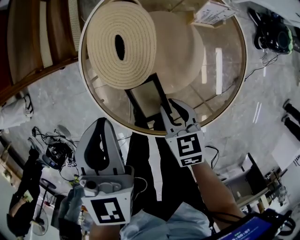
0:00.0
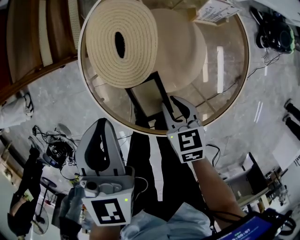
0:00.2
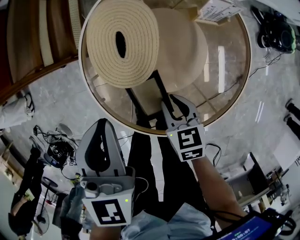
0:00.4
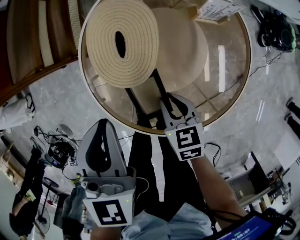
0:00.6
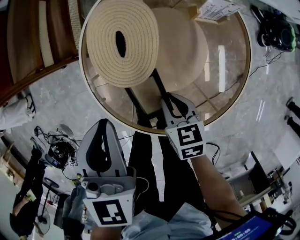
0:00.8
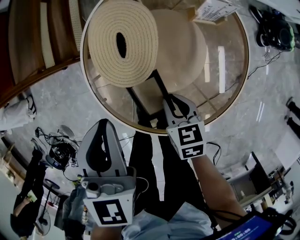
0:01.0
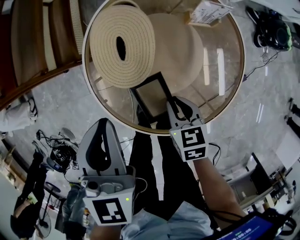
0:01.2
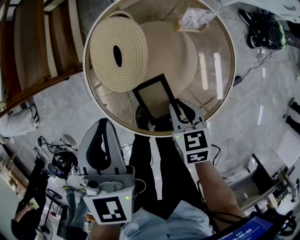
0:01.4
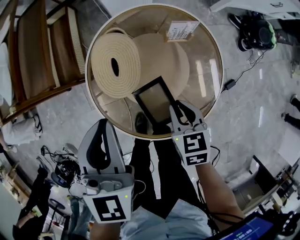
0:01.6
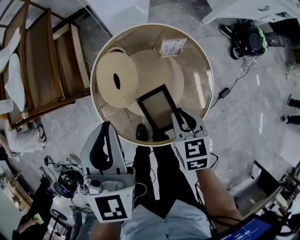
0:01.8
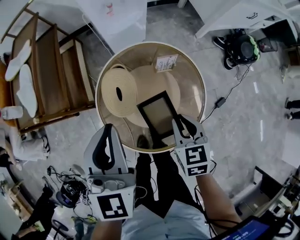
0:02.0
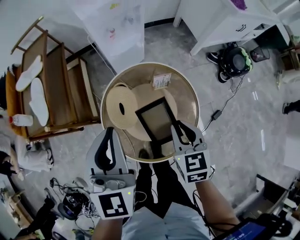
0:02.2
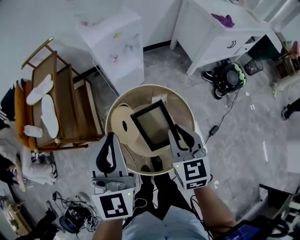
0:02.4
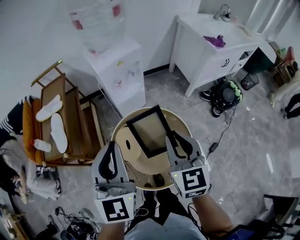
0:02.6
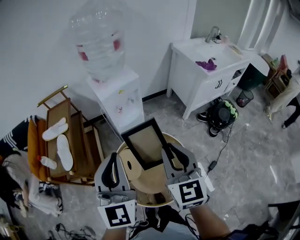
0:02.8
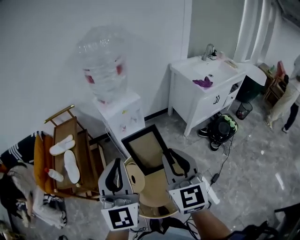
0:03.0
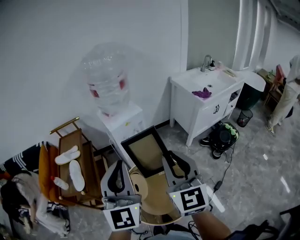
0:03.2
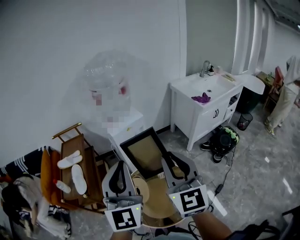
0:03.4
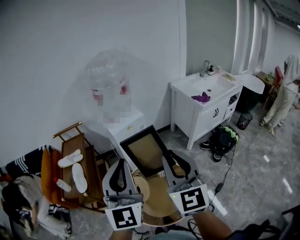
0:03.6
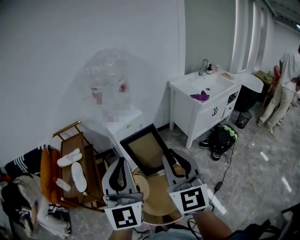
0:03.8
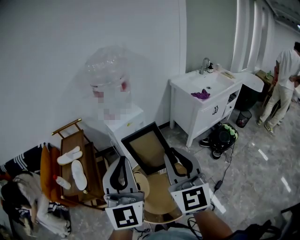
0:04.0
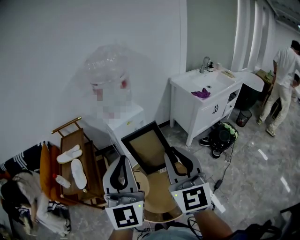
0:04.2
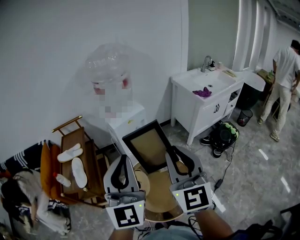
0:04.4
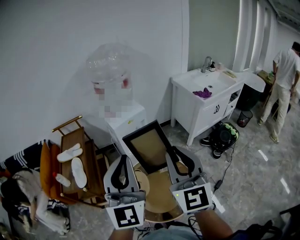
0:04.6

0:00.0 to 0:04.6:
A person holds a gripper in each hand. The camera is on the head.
0:00.0 to 0:01.6: The left gripper goes approximately 10 cm upward. The right gripper heads upward and to the right, covering some 10 cm.
0:01.6 to 0:03.0: Both grippers travel together upward, roughly 50 cm. The left gripper points its fingers some 30 degrees further upward. Meanwhile the right gripper points its fingers approximately 50 degrees further upward.
0:03.0 to 0:04.6: Both grippers move upward, roughly 5 cm.

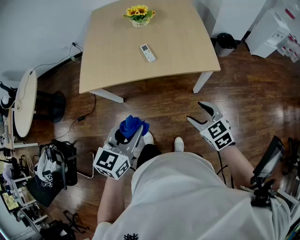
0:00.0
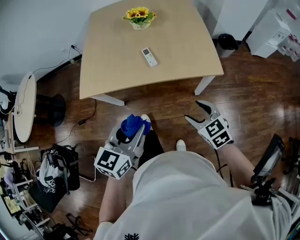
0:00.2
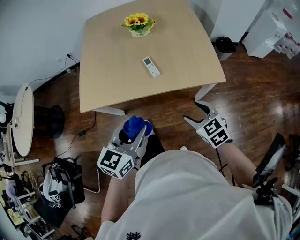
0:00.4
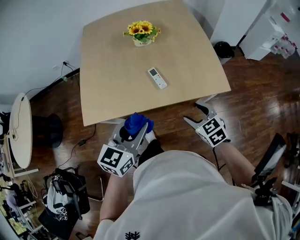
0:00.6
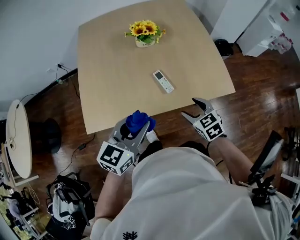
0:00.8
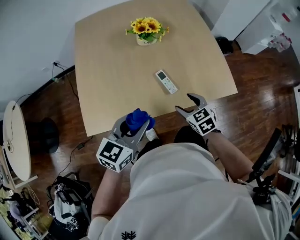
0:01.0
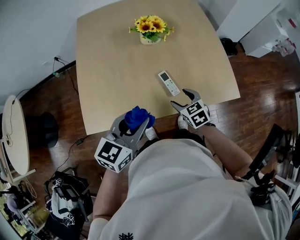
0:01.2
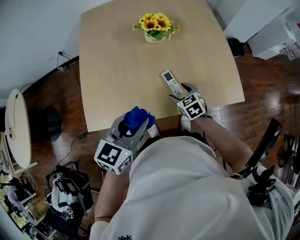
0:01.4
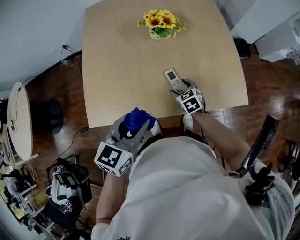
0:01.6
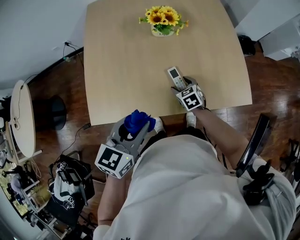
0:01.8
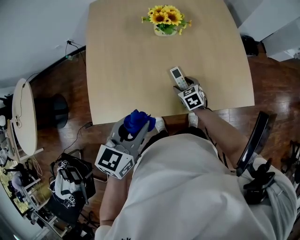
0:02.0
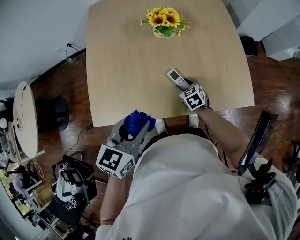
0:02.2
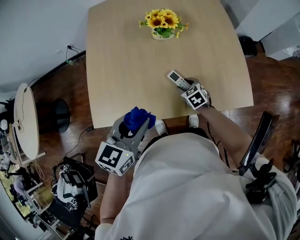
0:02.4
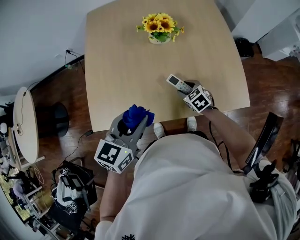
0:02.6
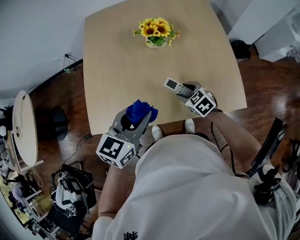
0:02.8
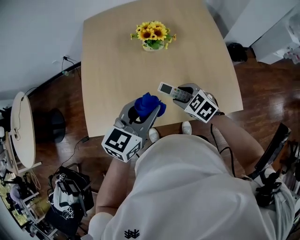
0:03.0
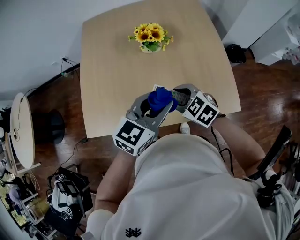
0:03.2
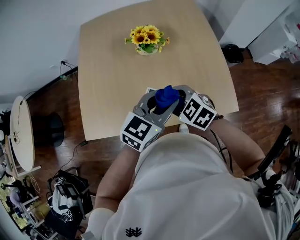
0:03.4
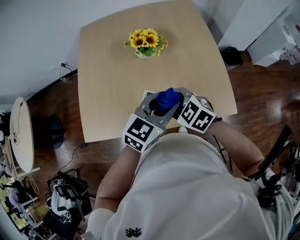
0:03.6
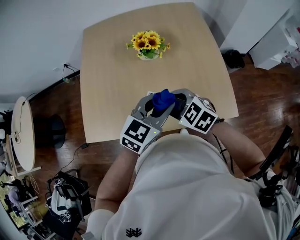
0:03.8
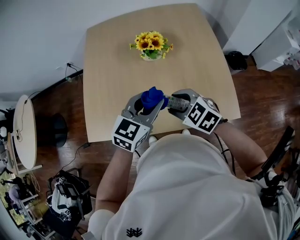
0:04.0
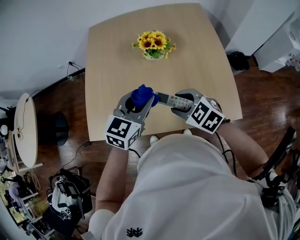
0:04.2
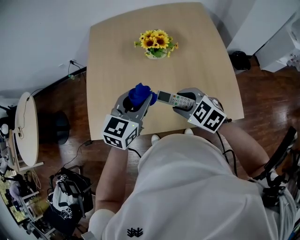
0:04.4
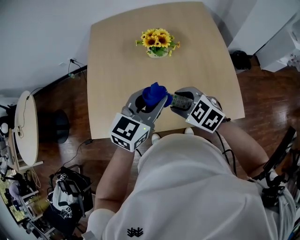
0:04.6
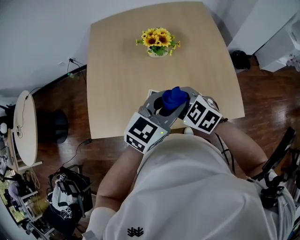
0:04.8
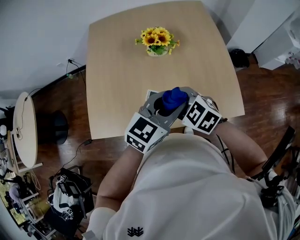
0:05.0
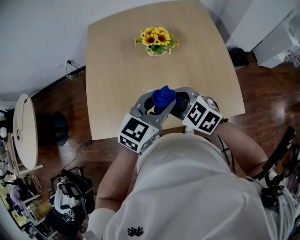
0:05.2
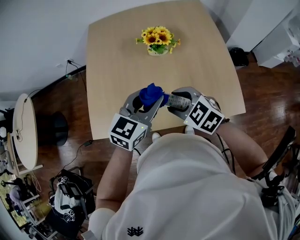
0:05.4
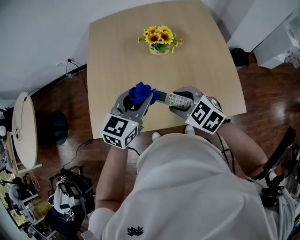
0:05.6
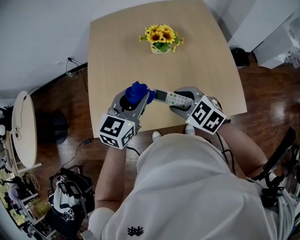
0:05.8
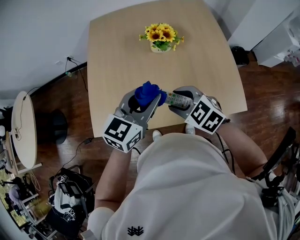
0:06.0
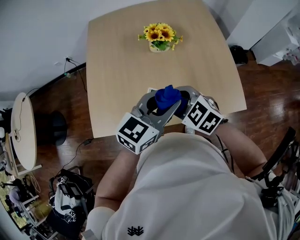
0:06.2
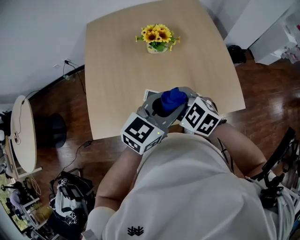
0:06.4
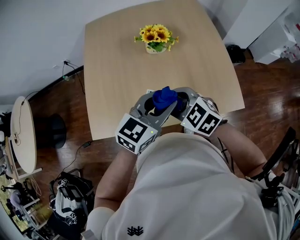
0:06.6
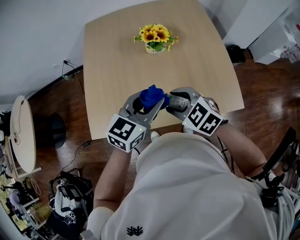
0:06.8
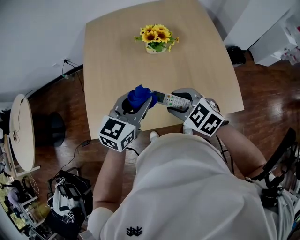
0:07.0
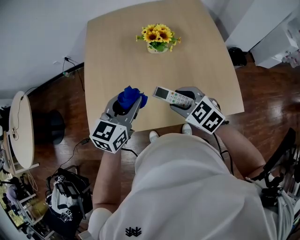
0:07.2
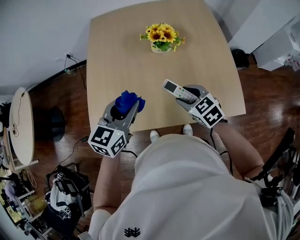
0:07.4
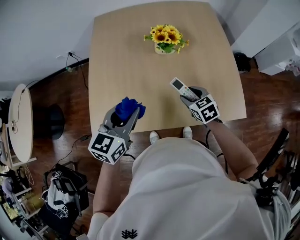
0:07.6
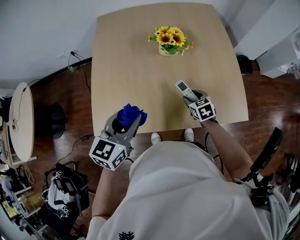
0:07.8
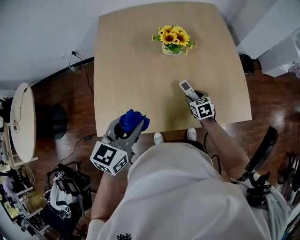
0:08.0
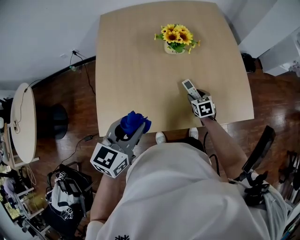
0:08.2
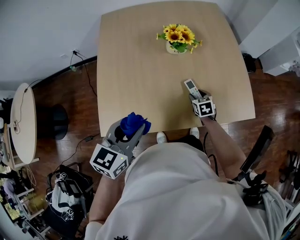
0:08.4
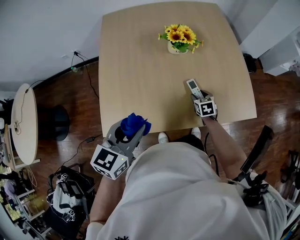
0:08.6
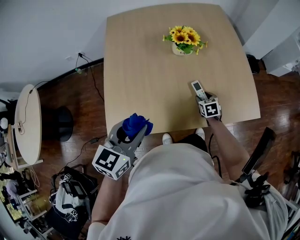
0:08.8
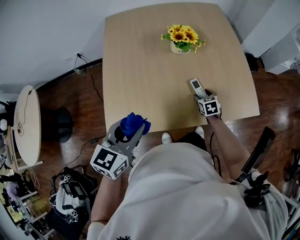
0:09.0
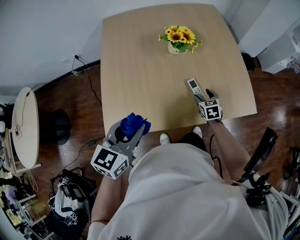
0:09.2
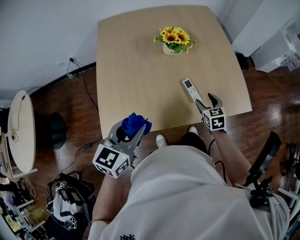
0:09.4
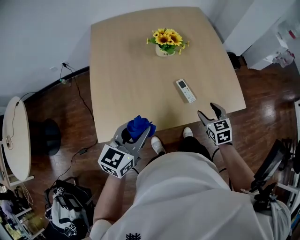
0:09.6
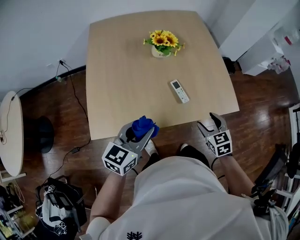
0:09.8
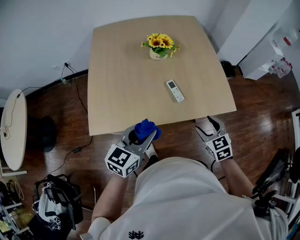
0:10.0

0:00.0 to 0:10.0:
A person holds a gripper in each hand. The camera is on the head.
0:00.0 to 0:01.4: The right gripper is displaced forward, to the left and downward by roughly 40 cm; the left gripper goes approximately 30 cm forward and to the left.
0:01.4 to 0:02.8: The right gripper reaches roughly 5 cm downward, then returns. The left gripper changes place by roughly 5 cm.
0:02.8 to 0:04.2: The left gripper goes some 5 cm forward, and moves about 15 cm to the right and comes back; the right gripper is displaced upward by roughly 15 cm.
0:04.2 to 0:05.8: The two grippers go roughly 5 cm to the left.
0:05.8 to 0:07.2: The left gripper reaches some 10 cm to the right, then returns.
0:07.2 to 0:08.6: The left gripper goes roughly 10 cm to the left and backward. The right gripper moves downward, approximately 25 cm, and turns by about 40 degrees.
0:08.6 to 0:10.0: The left gripper heads to the right and backward, covering about 15 cm. Meanwhile the right gripper moves backward, upward and to the right, about 30 cm, and swivels roughly 20 degrees.

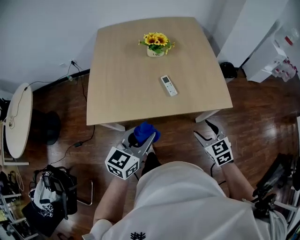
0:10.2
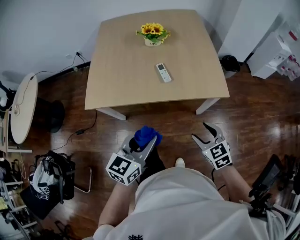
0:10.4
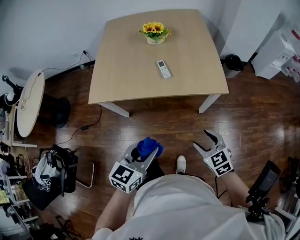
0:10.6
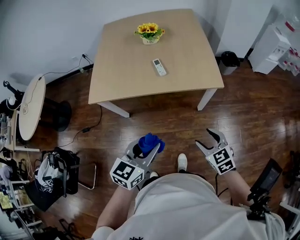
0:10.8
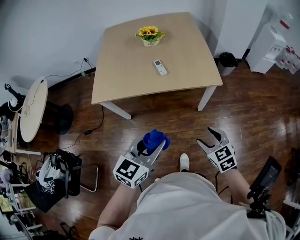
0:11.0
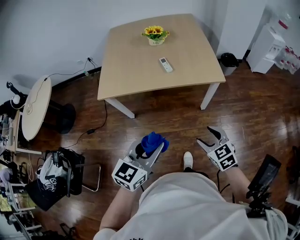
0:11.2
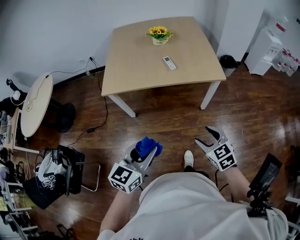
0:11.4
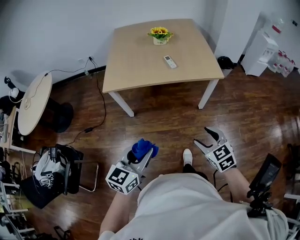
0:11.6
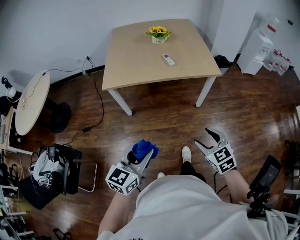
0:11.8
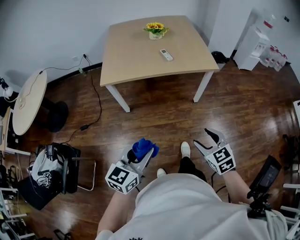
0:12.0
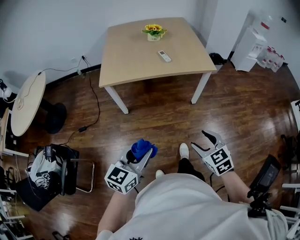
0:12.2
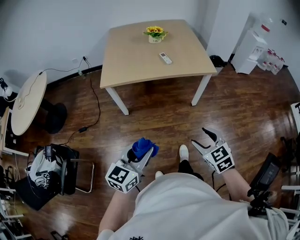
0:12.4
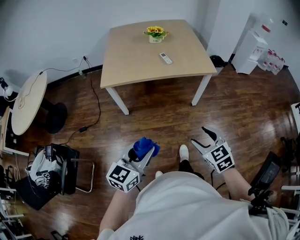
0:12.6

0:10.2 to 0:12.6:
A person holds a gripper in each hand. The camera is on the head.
0:10.2 to 0:11.4: Both grippers travel together backward, some 30 cm.
0:11.4 to 0:12.6: The grippers both shift backward by roughly 10 cm.

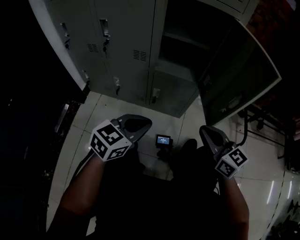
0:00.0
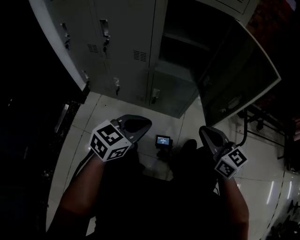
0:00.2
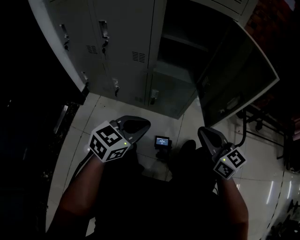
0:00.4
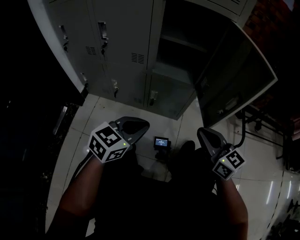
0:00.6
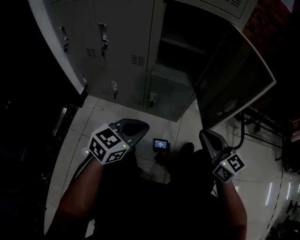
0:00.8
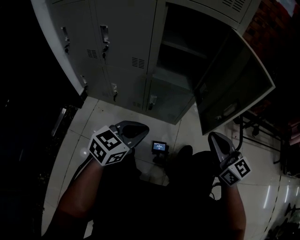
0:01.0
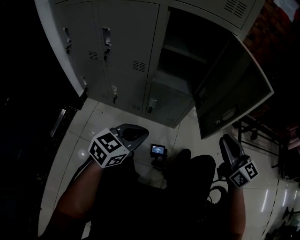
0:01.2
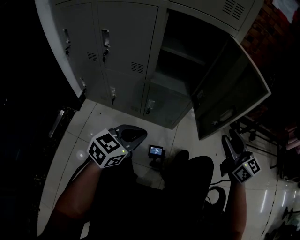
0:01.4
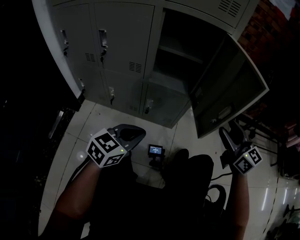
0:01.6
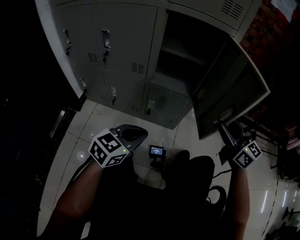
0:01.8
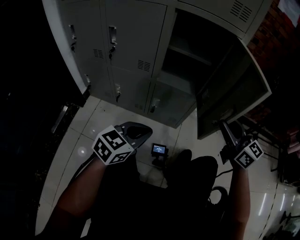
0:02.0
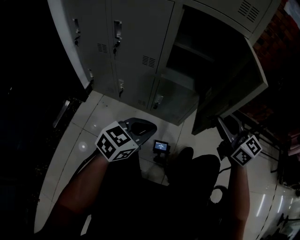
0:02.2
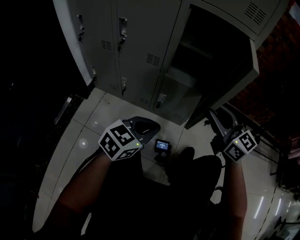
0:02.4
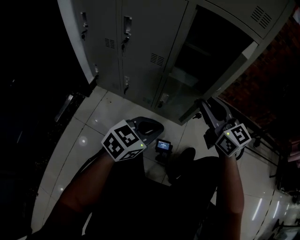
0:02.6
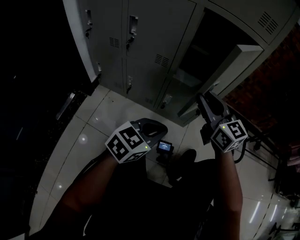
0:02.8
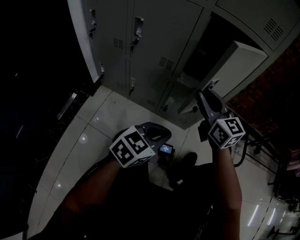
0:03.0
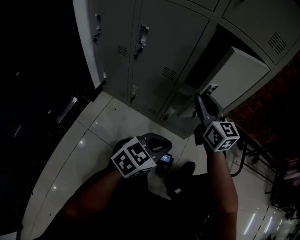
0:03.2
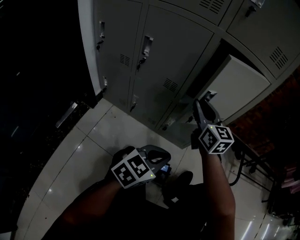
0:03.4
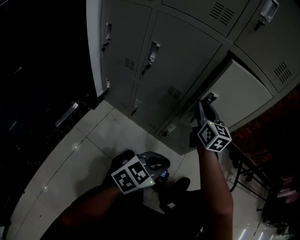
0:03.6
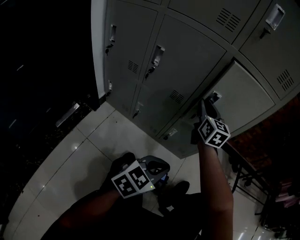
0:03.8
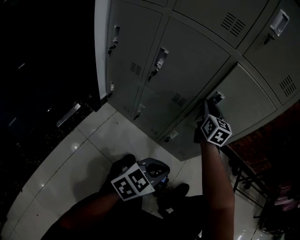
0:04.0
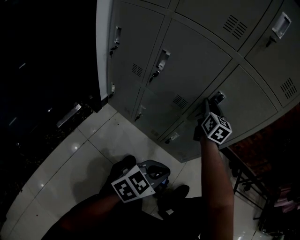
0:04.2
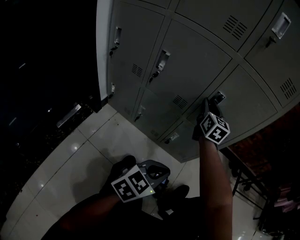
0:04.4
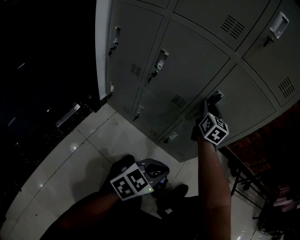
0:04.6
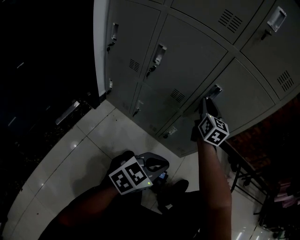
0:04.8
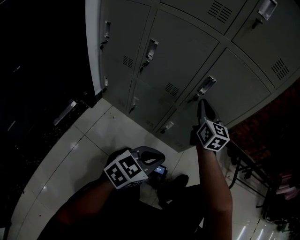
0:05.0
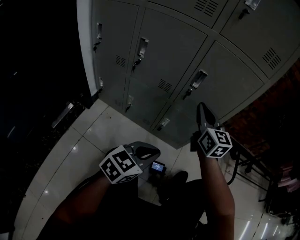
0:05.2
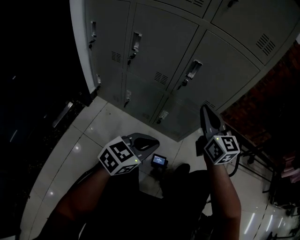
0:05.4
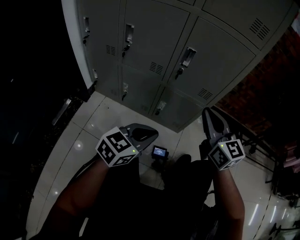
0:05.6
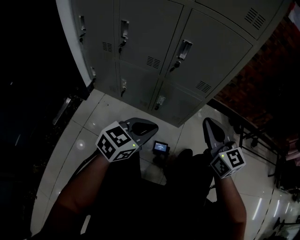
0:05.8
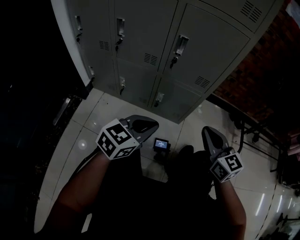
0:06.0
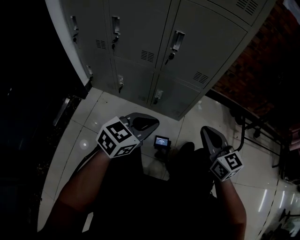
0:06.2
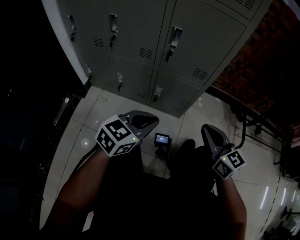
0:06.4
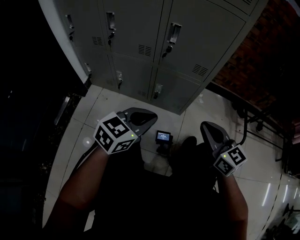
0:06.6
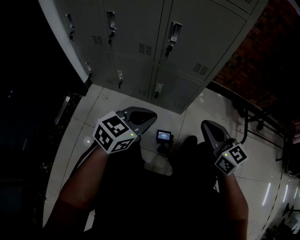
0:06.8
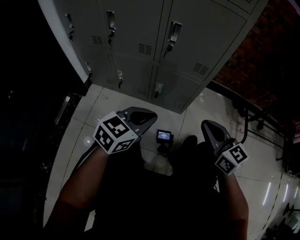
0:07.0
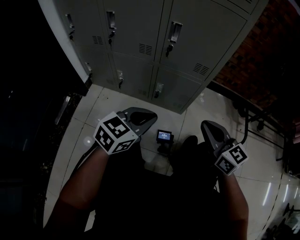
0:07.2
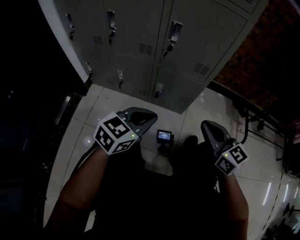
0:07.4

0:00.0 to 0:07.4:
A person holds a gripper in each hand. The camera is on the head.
0:00.0 to 0:01.4: The right gripper shifts roughly 15 cm to the right and upward, and opens.
0:01.4 to 0:03.0: The right gripper goes some 25 cm to the left and forward.
0:03.0 to 0:04.4: The right gripper moves forward and to the left, approximately 20 cm, and rotates roughly 20 degrees.
0:04.4 to 0:06.0: The right gripper travels backward and to the right by roughly 35 cm, and closes up.
0:06.0 to 0:07.4: The grippers make only small movements.
